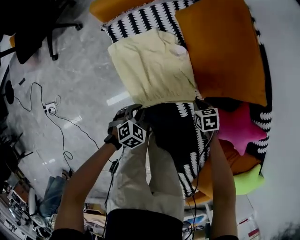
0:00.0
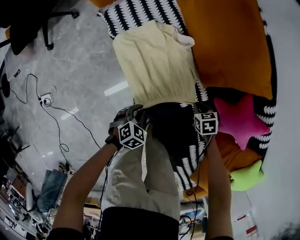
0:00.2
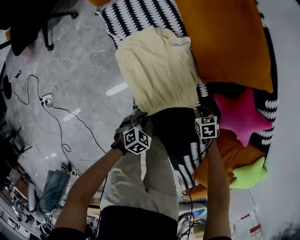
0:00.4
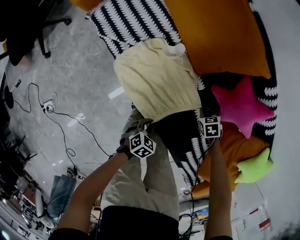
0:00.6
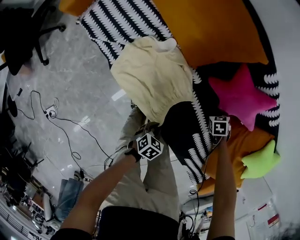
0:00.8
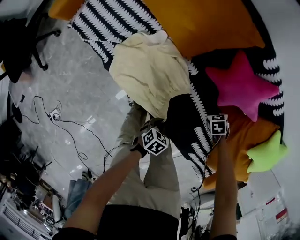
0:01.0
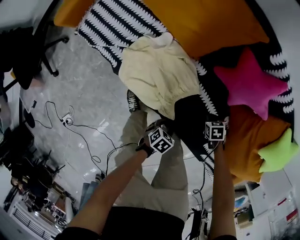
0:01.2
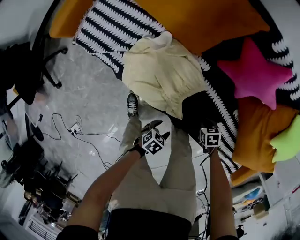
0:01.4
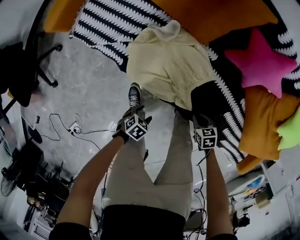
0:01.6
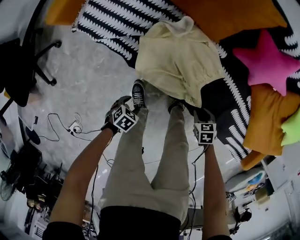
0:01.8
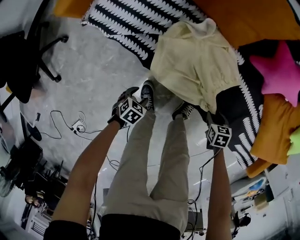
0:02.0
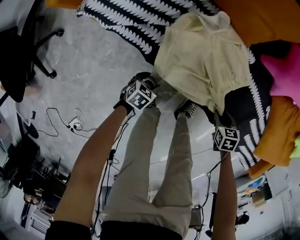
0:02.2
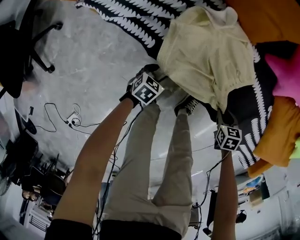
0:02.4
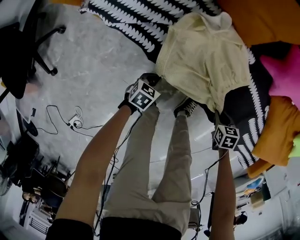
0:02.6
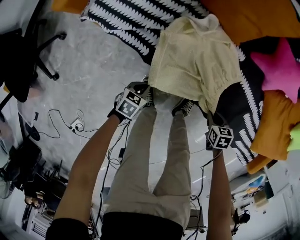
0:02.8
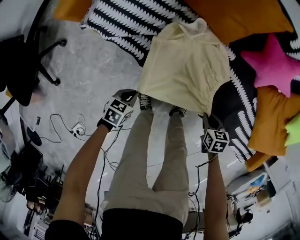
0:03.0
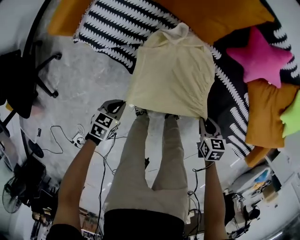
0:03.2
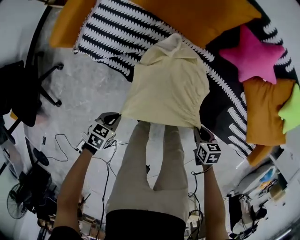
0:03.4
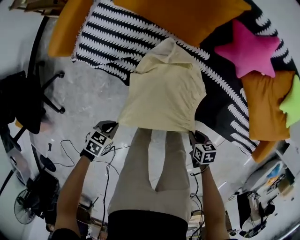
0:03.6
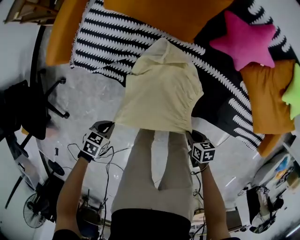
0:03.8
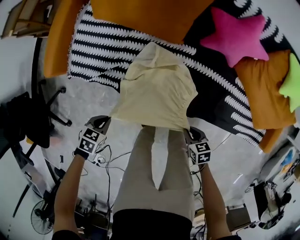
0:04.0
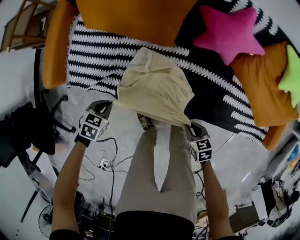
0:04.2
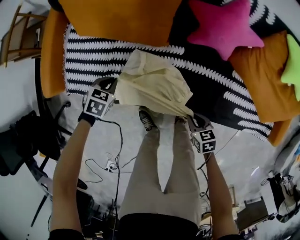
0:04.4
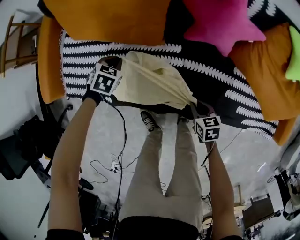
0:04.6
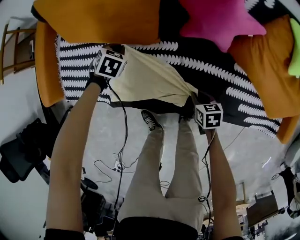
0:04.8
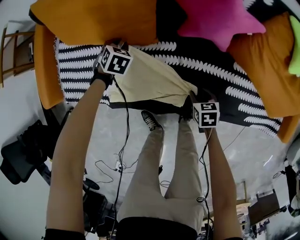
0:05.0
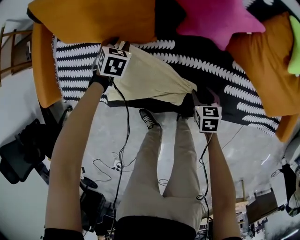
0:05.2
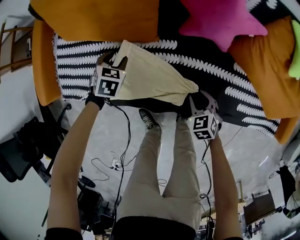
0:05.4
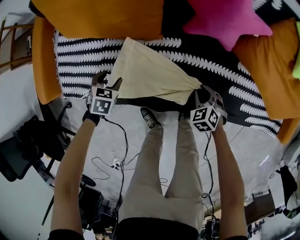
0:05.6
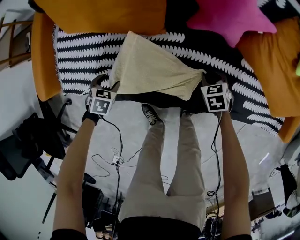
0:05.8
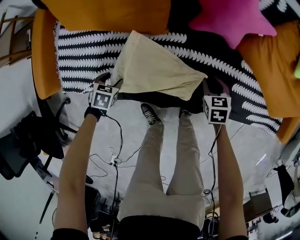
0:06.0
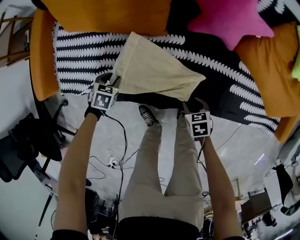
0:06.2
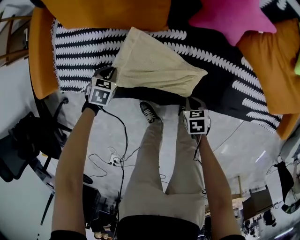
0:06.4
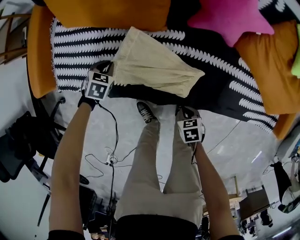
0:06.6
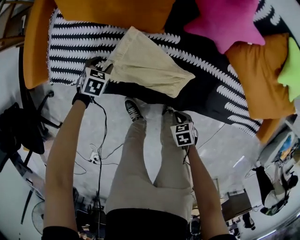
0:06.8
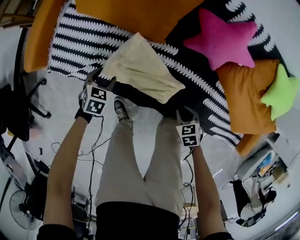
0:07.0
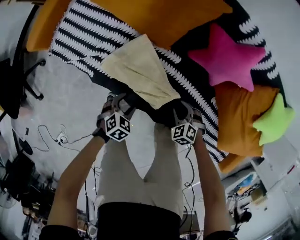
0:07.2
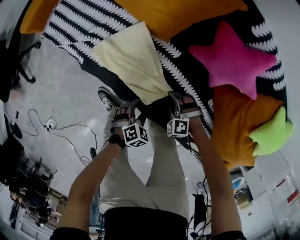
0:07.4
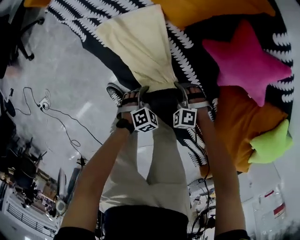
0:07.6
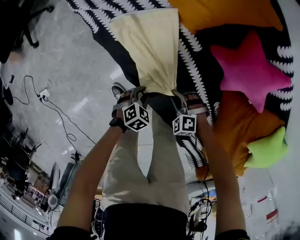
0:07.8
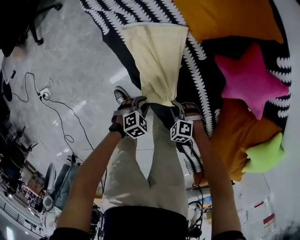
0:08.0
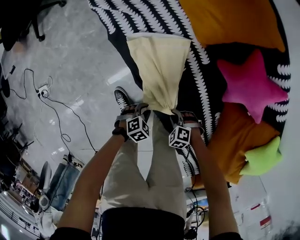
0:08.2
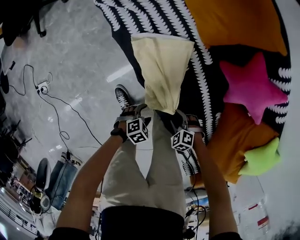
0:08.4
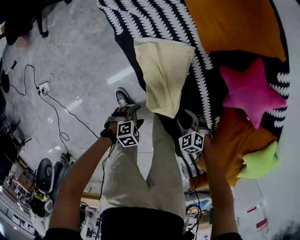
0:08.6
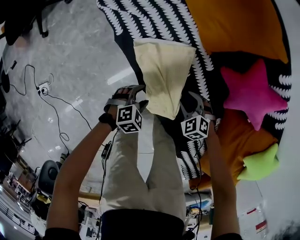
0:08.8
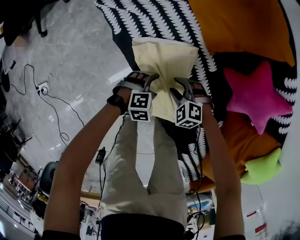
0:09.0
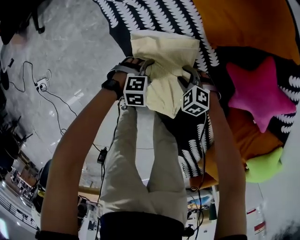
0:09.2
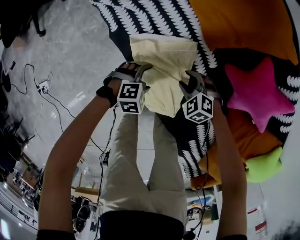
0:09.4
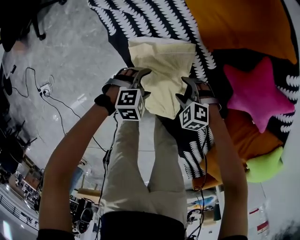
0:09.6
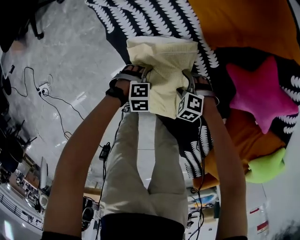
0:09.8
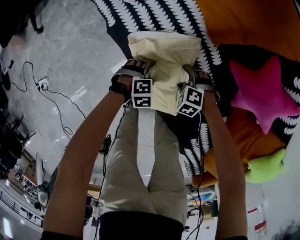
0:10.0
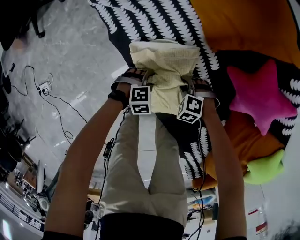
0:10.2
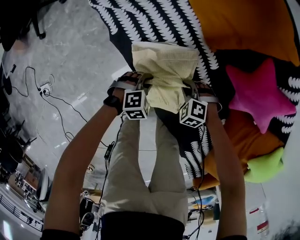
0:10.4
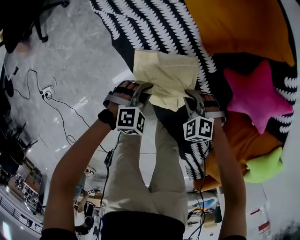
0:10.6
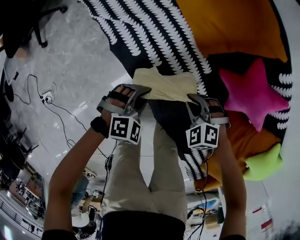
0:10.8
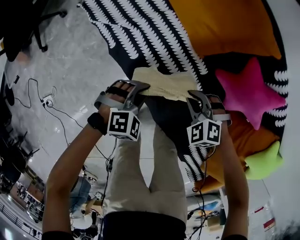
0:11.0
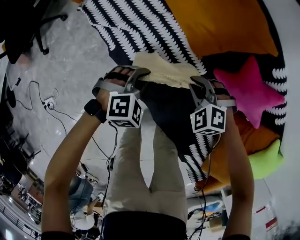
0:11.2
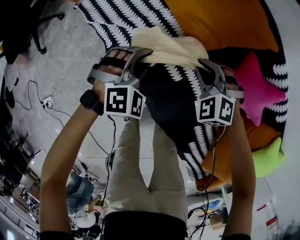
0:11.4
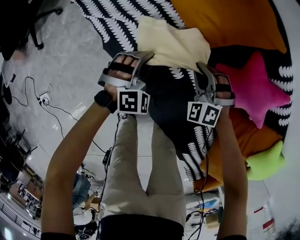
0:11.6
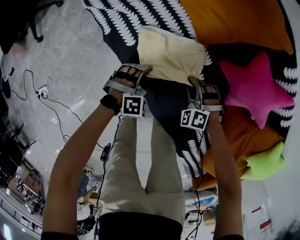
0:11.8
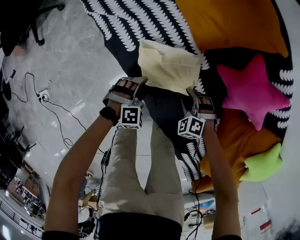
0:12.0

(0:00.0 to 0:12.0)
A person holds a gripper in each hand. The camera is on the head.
0:00.0 - 0:01.6: The left gripper moves roughly 25 cm, rotates some 30 degrees, and opens up. Meanwhile the right gripper moves roughly 35 cm, and changes its angle by some 30 degrees.
0:01.6 - 0:03.0: The left gripper goes downward and returns, about 10 cm each way, rotates some 20 degrees, and closes up, while the right gripper ends up roughly 10 cm from where it was.
0:03.0 - 0:04.4: The left gripper ends up about 30 cm from where it was, and changes its angle by roughly 40 degrees.
0:04.4 - 0:06.0: The left gripper goes approximately 10 cm downward, and opens; the right gripper ends up roughly 15 cm from where it was.
0:06.0 - 0:07.6: The left gripper travels upward and back again, roughly 10 cm each way. The right gripper moves up and down over about 10 cm, changing direction 2 times, and rotates around the line of its fingers by about 100 degrees, counterclockwise from behind.
0:07.6 - 0:09.0: The right gripper changes place by roughly 15 cm. The left gripper opens up.
0:09.0 - 0:10.4: The left gripper goes downward and returns, approximately 5 cm each way, and closes up.
0:10.4 - 0:12.0: The left gripper reaches some 20 cm upward, then returns, while the right gripper travels upward and back again, about 20 cm each way.

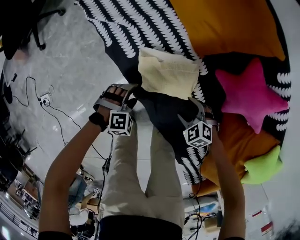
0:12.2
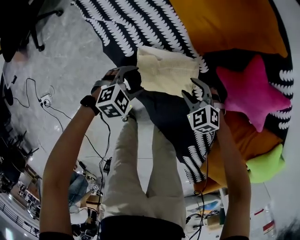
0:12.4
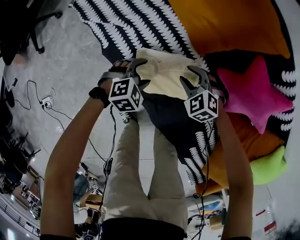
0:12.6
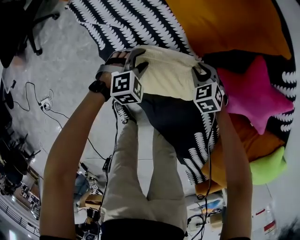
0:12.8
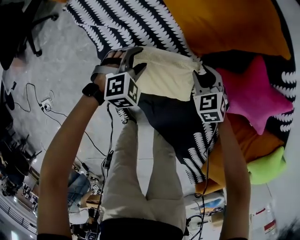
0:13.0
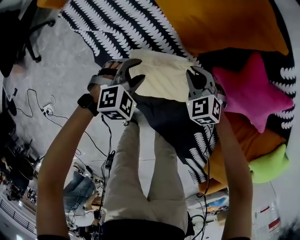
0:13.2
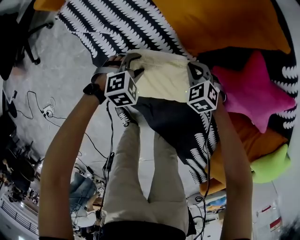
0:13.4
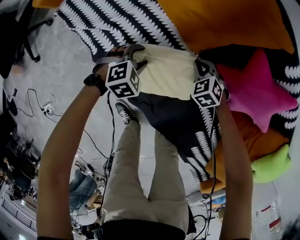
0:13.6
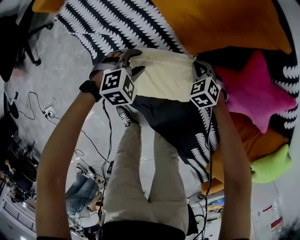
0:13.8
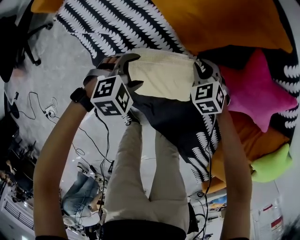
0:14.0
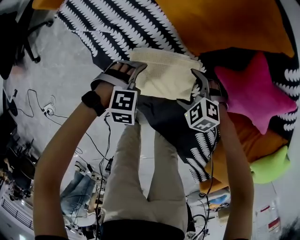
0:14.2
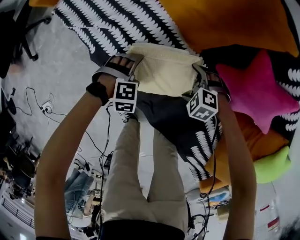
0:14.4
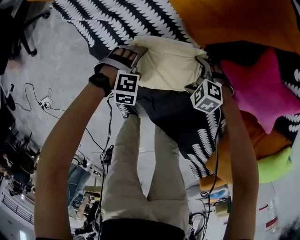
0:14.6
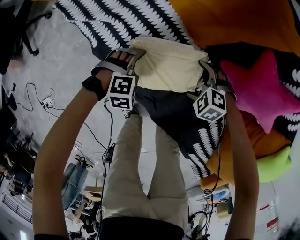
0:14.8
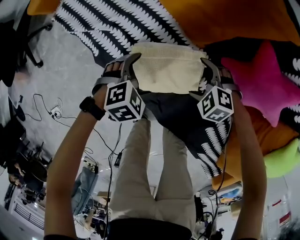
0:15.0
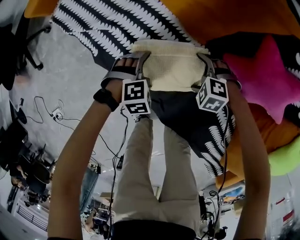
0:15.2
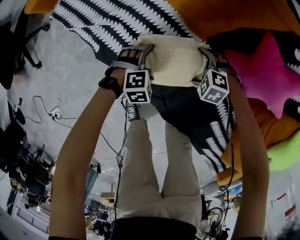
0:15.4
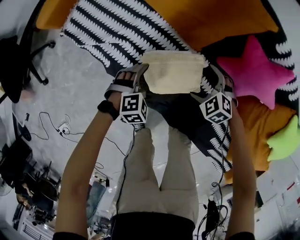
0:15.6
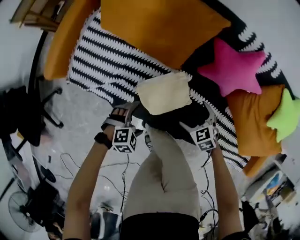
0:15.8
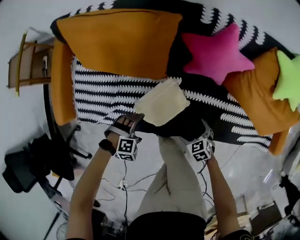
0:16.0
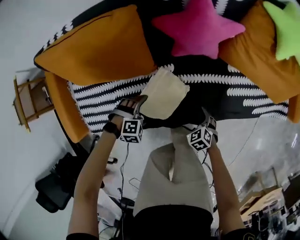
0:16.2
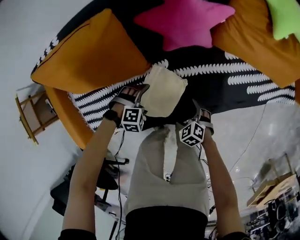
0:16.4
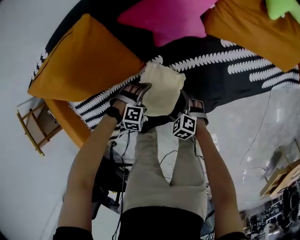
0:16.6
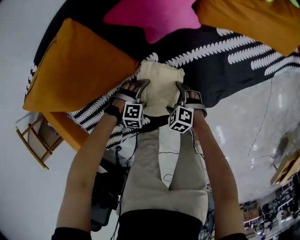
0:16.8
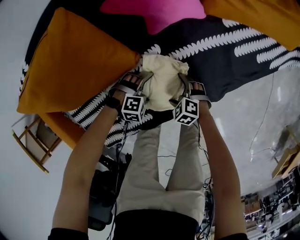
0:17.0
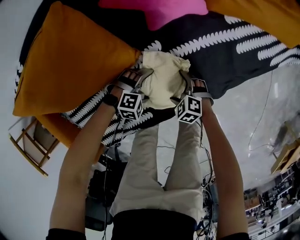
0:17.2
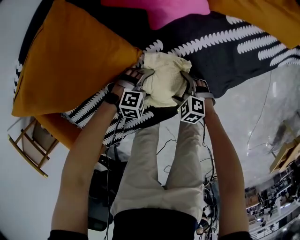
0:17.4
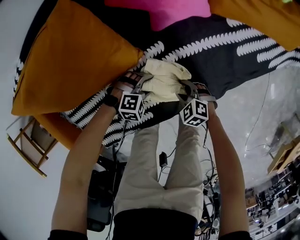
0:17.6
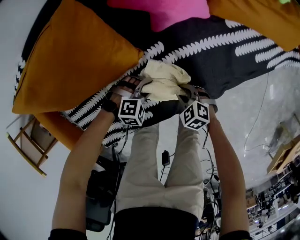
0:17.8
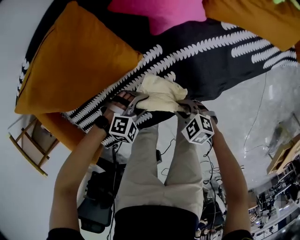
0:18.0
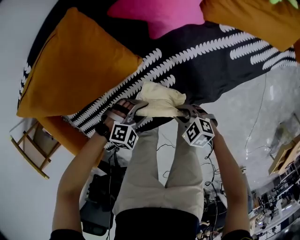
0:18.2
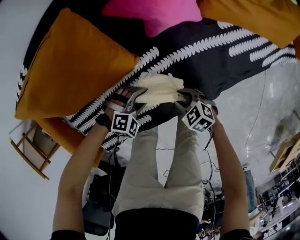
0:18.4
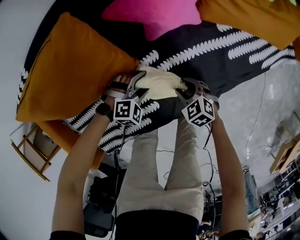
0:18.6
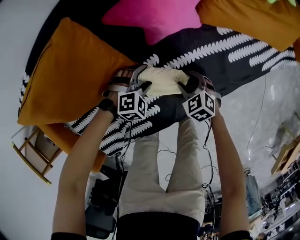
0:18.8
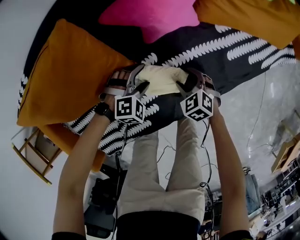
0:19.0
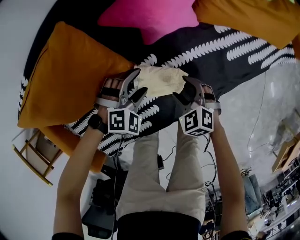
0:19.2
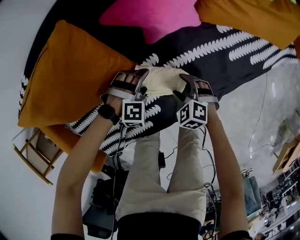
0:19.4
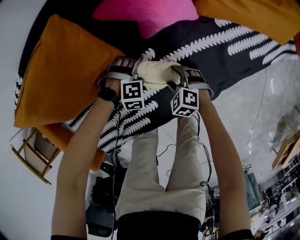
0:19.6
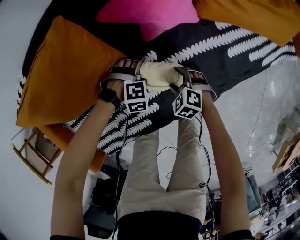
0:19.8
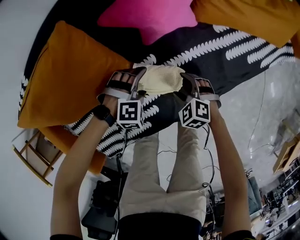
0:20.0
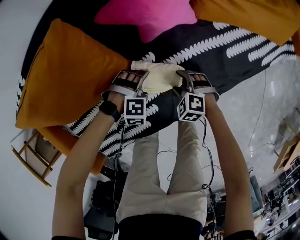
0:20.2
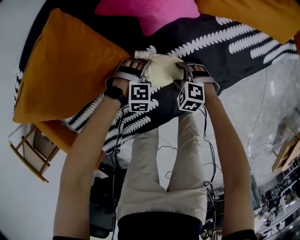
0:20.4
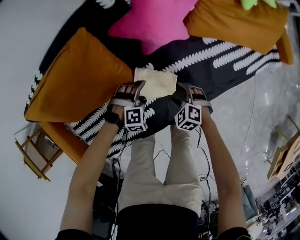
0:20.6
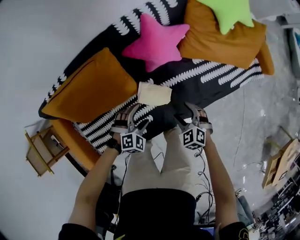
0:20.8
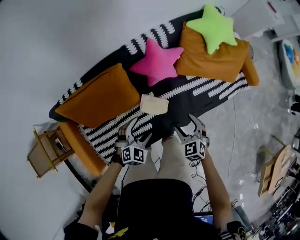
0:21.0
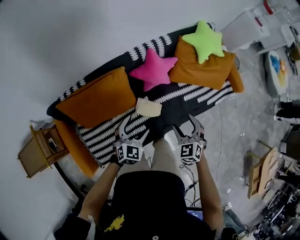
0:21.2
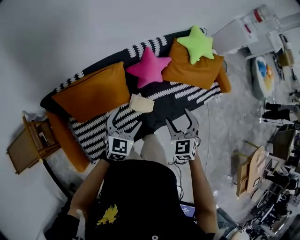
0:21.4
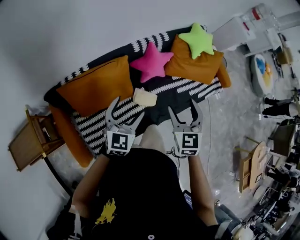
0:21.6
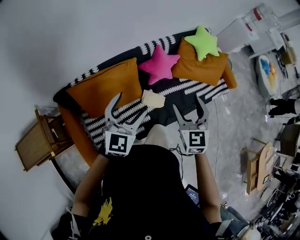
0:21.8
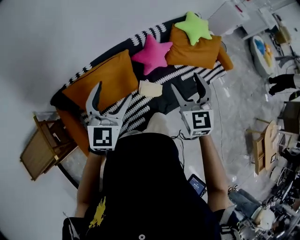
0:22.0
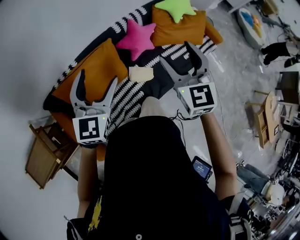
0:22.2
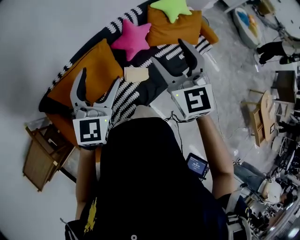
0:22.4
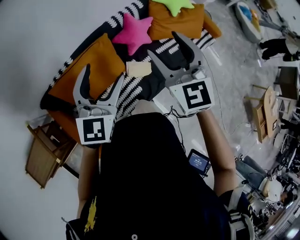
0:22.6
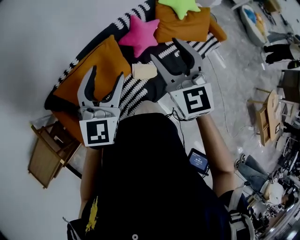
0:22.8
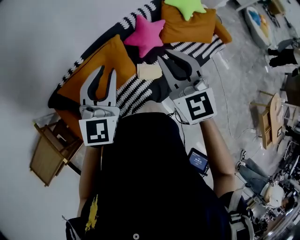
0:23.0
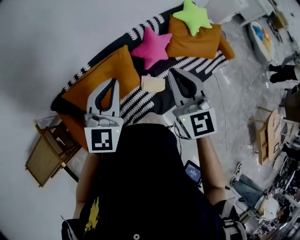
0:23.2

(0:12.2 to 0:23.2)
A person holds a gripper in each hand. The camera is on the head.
0:12.2 - 0:13.8: The left gripper ends up roughly 20 cm from where it was. Meanwhile the right gripper ends up about 20 cm from where it was, rotates some 20 degrees, and closes up.
0:13.8 - 0:15.4: The left gripper moves up and down over approximately 10 cm, changing direction 3 times, and opens up, while the right gripper swings up and down, approximately 5 cm each way, with 3 reversals, rotates about 30 degrees, and opens.
0:15.4 - 0:17.0: The right gripper travels upward and back again, approximately 15 cm each way, and rotates around the line of its fingers by about 90 degrees, clockwise from behind. Meanwhile the left gripper moves about 15 cm upward and comes back, and rotates around the line of its fingers by roughly 80 degrees, clockwise from behind.
0:17.0 - 0:18.4: Both grippers move upward, roughly 10 cm. The right gripper closes its fingers. The left gripper closes up.
0:18.4 - 0:20.0: The right gripper moves some 5 cm downward and comes back, rotates some 20 degrees, and opens its fingers. The left gripper swings up and down, about 10 cm each way, with 2 reversals, and opens up.
0:20.0 - 0:21.6: The grippers both shift upward by some 70 cm. The right gripper tilts its fingers roughly 40 degrees upward, while the left gripper tilts its fingers approximately 50 degrees upward.
0:21.6 - 0:23.2: The left gripper shifts approximately 15 cm upward and to the left, and closes. The right gripper moves to the left and upward, some 15 cm, turns by approximately 20 degrees, and closes its fingers.
